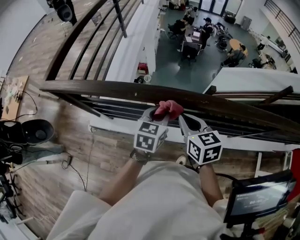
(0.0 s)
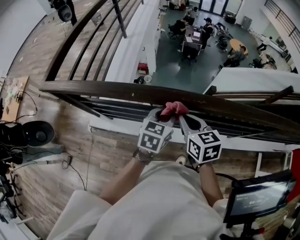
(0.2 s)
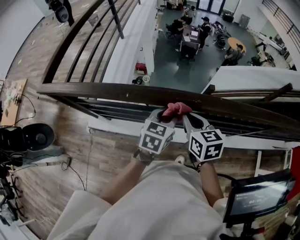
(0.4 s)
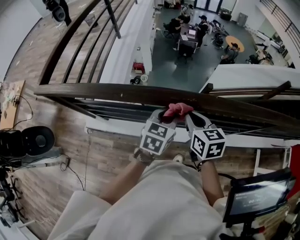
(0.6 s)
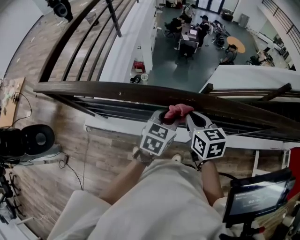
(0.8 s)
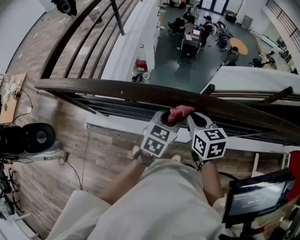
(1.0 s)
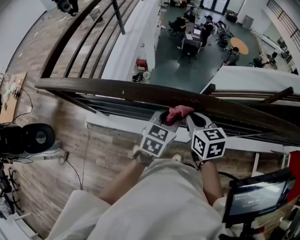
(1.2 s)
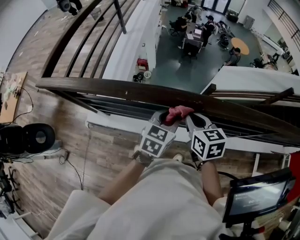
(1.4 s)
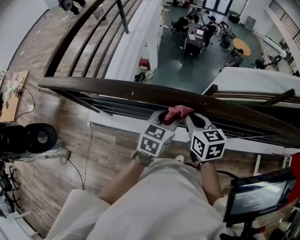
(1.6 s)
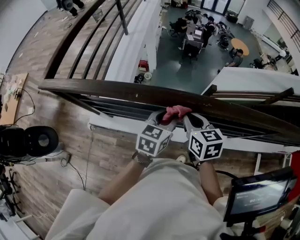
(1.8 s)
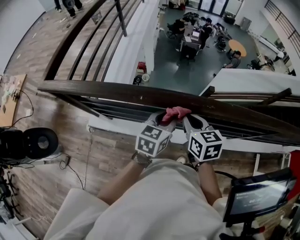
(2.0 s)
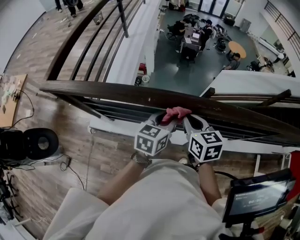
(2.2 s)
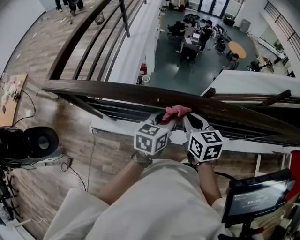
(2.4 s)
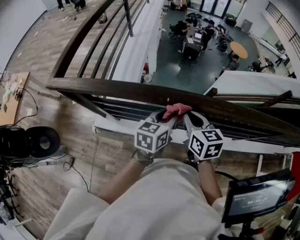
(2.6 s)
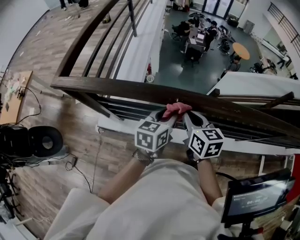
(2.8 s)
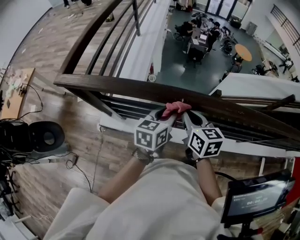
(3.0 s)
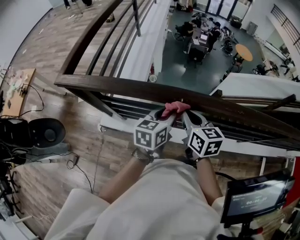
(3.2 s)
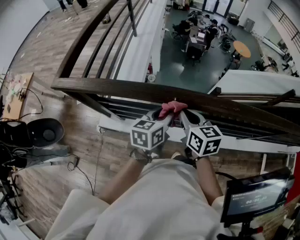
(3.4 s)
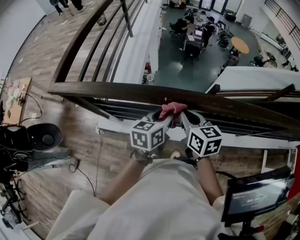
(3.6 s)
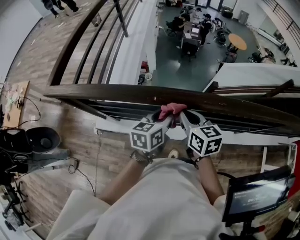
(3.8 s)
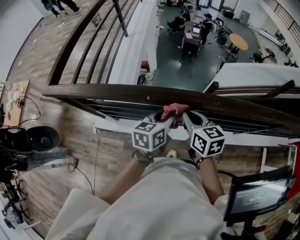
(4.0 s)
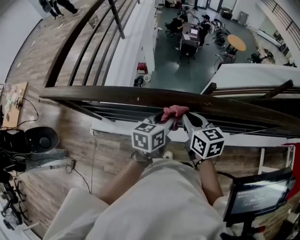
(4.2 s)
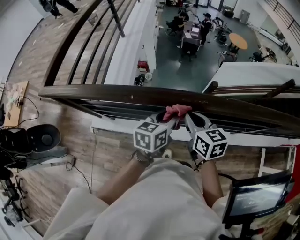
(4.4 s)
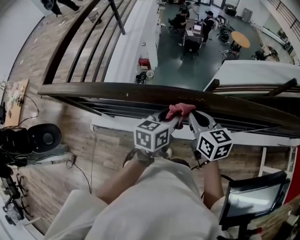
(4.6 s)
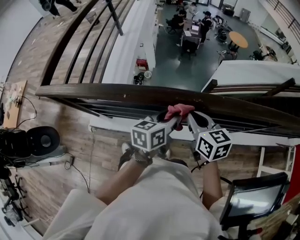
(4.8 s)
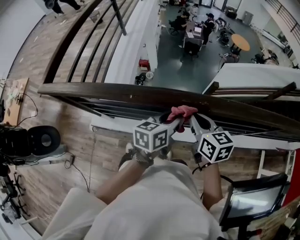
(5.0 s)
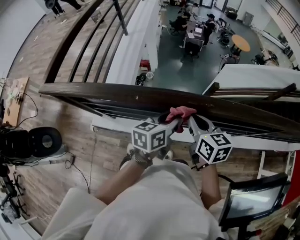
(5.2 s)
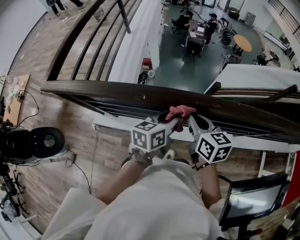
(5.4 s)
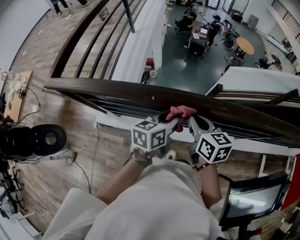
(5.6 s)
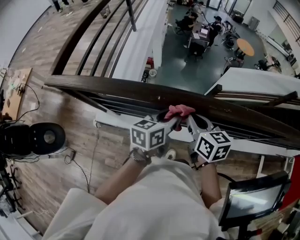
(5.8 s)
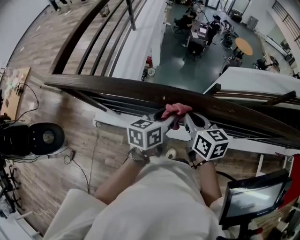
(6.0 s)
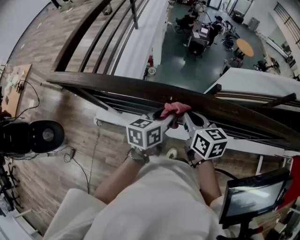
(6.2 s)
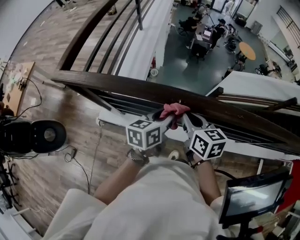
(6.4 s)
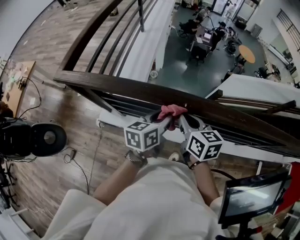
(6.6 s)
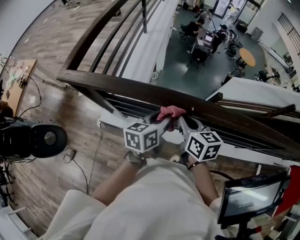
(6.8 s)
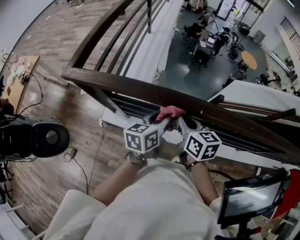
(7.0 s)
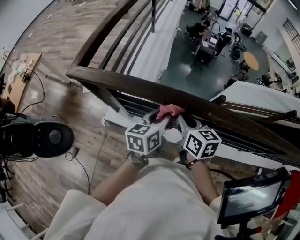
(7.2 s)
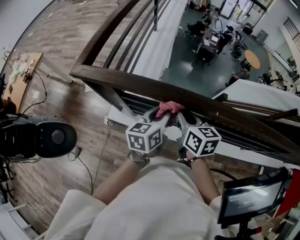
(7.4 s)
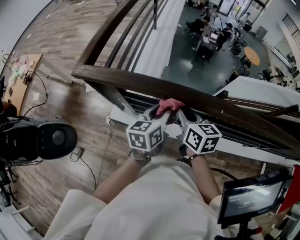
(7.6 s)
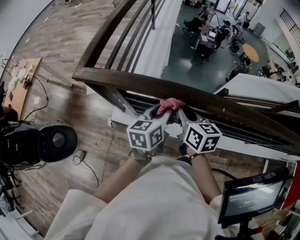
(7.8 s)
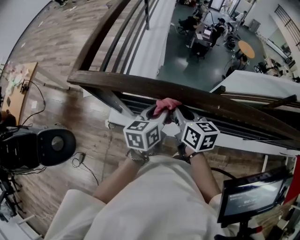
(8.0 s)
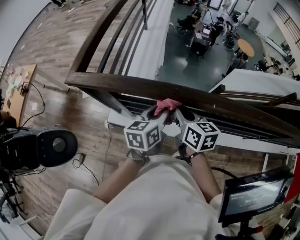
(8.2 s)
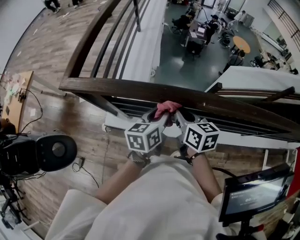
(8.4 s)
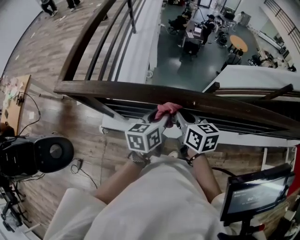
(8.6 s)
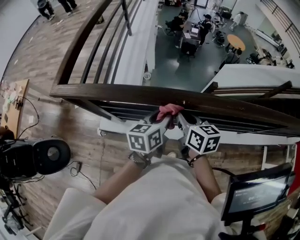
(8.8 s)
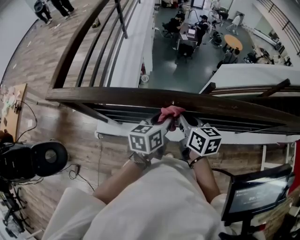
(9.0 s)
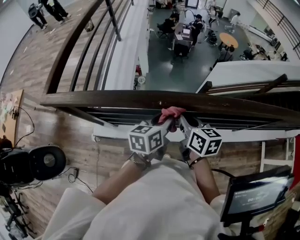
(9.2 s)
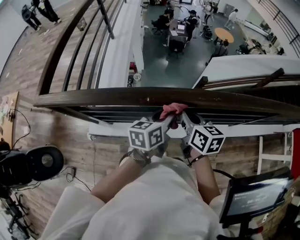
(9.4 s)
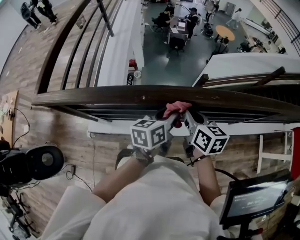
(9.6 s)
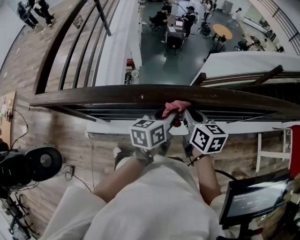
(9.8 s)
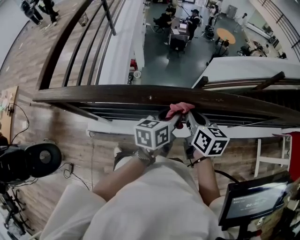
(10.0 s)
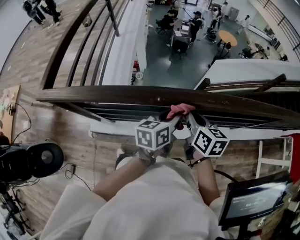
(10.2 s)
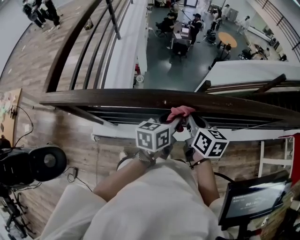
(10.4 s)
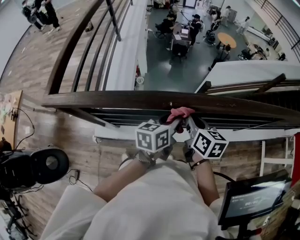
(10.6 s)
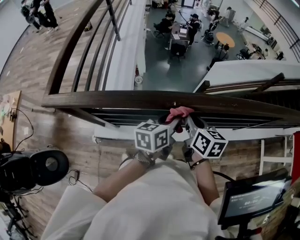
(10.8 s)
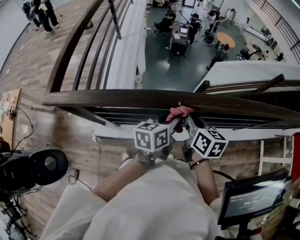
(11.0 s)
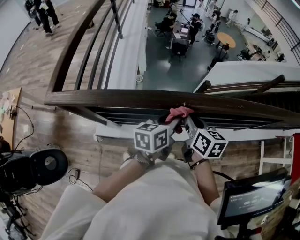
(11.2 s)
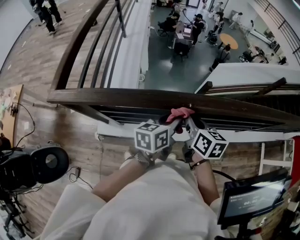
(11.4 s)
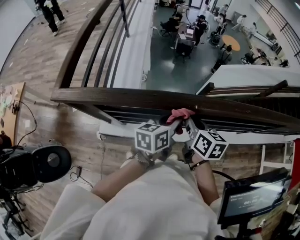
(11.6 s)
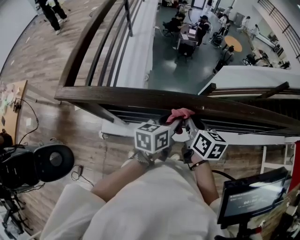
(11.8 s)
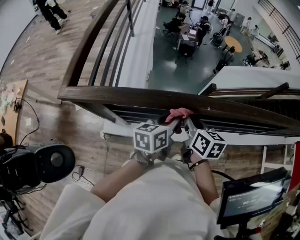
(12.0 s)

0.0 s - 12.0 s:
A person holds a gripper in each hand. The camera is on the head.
1.6 s - 3.0 s: Both grippers travel together to the left, about 15 cm.
3.0 s - 4.4 s: The grippers both shift to the right by about 15 cm.
4.4 s - 6.0 s: Both grippers travel together to the left, some 10 cm.
6.0 s - 7.6 s: Both grippers travel together to the left, about 20 cm.
7.6 s - 9.0 s: The grippers both shift to the right by approximately 15 cm.
9.0 s - 10.4 s: The two grippers go some 5 cm to the right.
10.4 s - 12.0 s: Both grippers travel together to the left, roughly 15 cm.

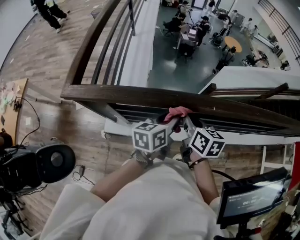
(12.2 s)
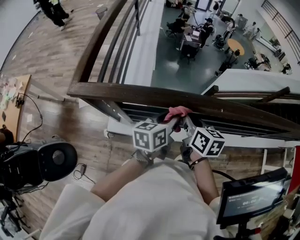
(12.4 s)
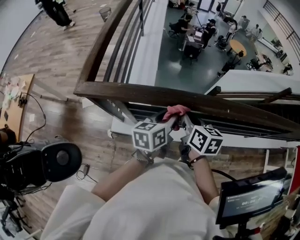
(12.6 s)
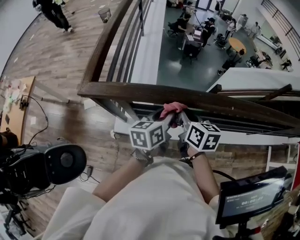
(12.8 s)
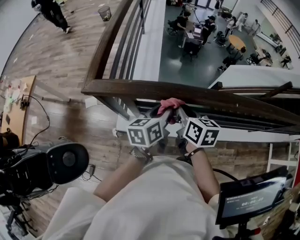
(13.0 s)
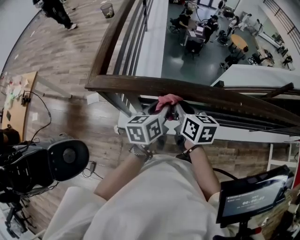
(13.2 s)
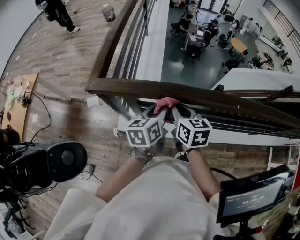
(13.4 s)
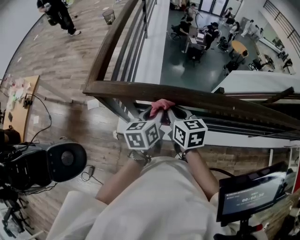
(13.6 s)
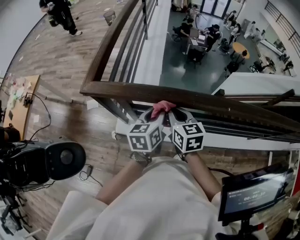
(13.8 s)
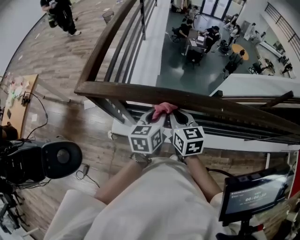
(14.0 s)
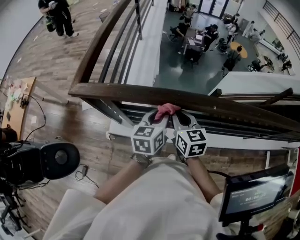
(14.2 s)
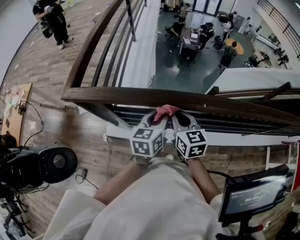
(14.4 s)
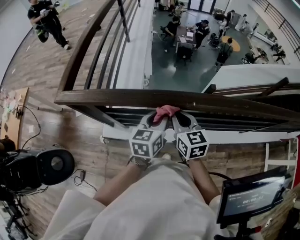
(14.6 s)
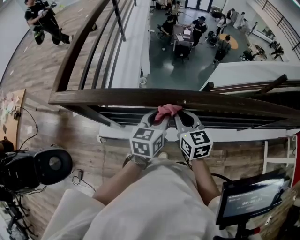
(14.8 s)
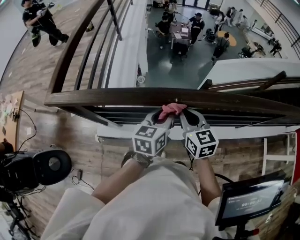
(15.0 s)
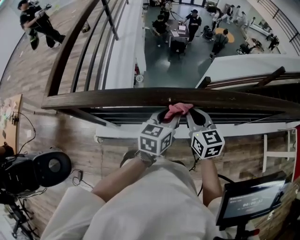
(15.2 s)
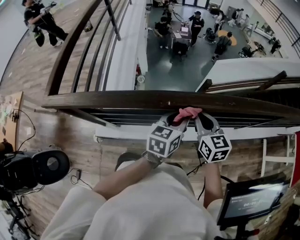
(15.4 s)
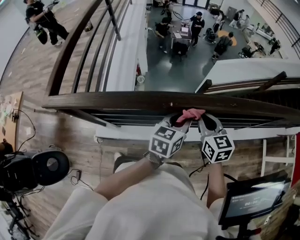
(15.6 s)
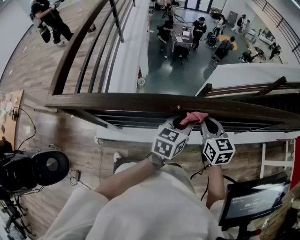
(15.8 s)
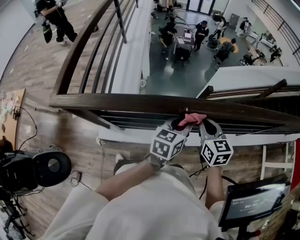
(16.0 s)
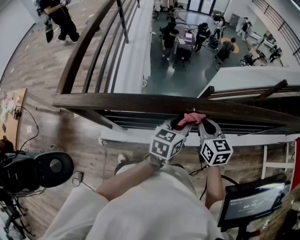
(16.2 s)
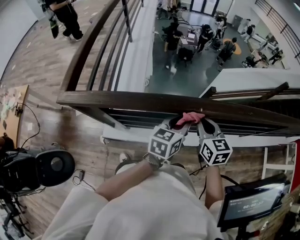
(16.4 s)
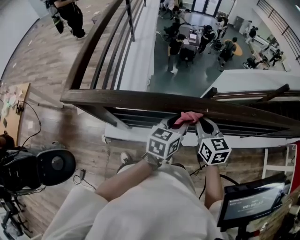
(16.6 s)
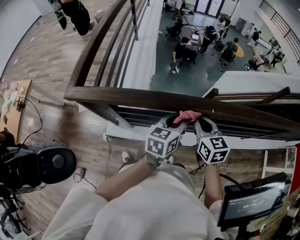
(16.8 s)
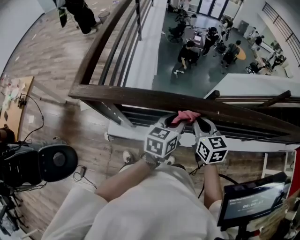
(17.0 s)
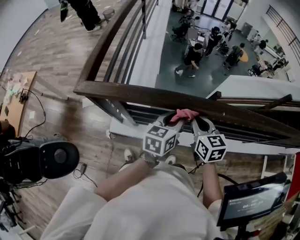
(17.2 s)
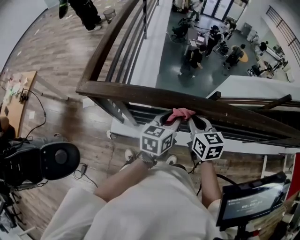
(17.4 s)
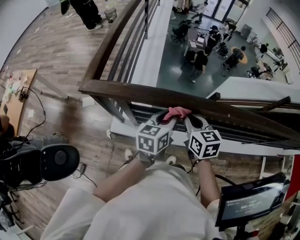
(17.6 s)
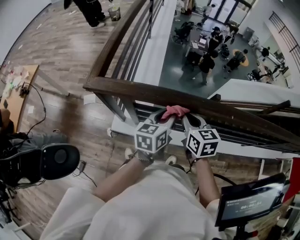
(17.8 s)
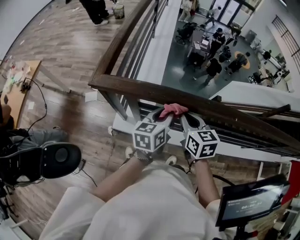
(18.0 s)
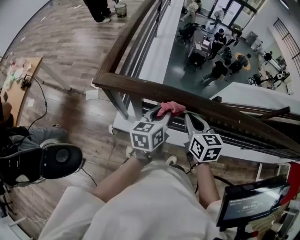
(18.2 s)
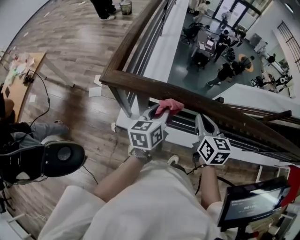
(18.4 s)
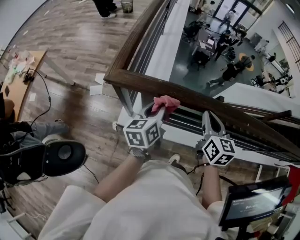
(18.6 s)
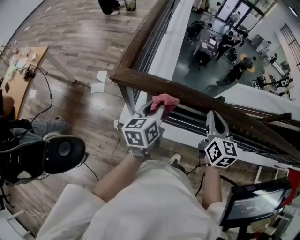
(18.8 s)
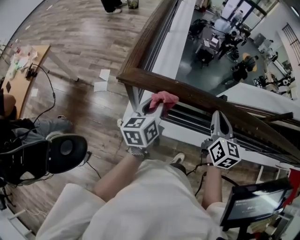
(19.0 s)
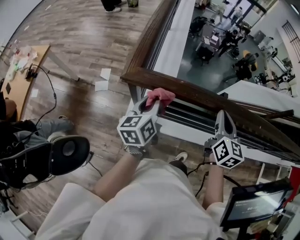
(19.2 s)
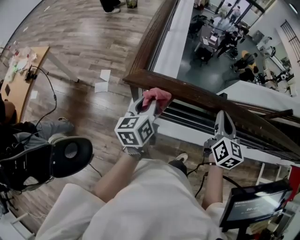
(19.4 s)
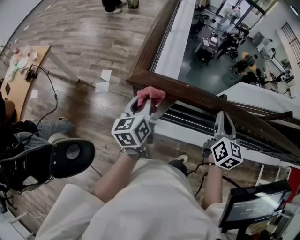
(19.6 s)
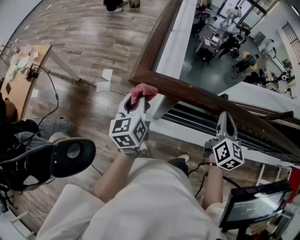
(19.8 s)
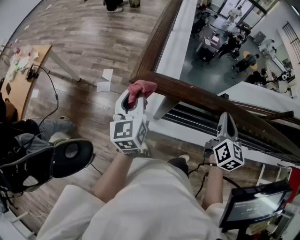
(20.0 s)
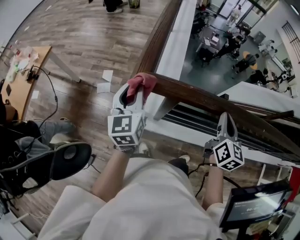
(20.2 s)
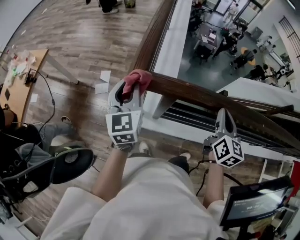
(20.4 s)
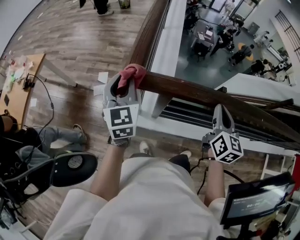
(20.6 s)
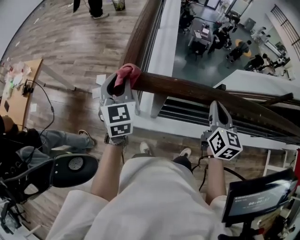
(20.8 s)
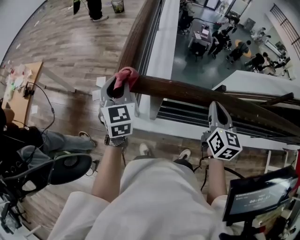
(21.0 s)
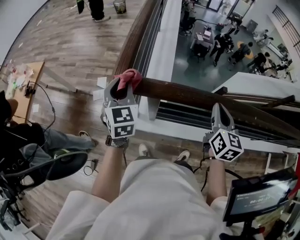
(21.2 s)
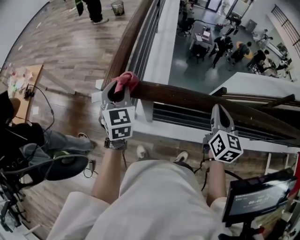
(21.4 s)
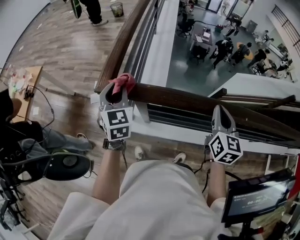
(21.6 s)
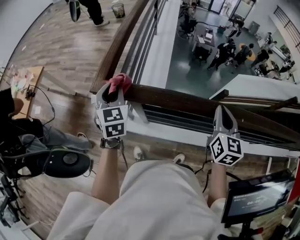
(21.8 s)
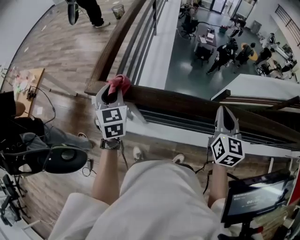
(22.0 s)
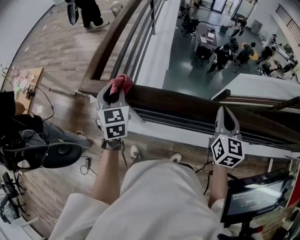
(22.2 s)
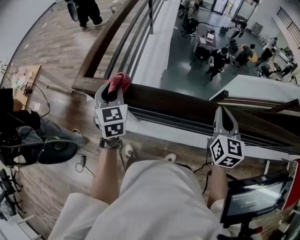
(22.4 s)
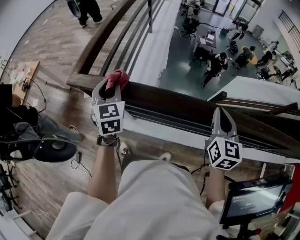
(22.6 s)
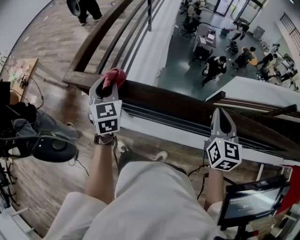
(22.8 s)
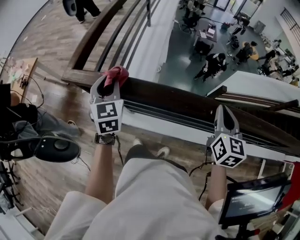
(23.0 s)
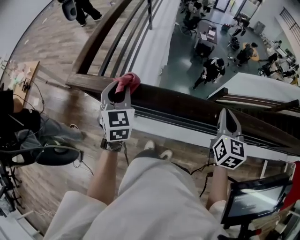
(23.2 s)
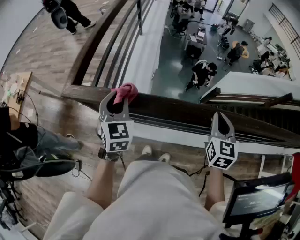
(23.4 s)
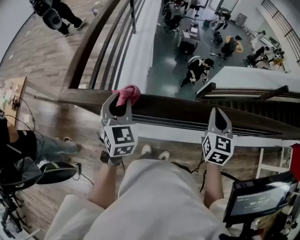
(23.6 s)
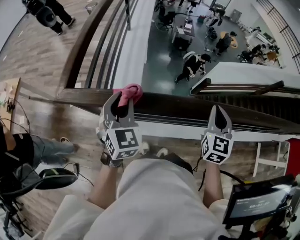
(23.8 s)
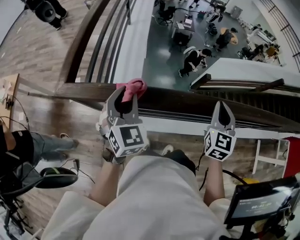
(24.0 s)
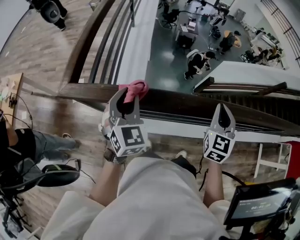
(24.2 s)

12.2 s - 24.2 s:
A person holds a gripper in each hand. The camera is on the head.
12.2 s - 13.8 s: Both grippers move to the left, about 15 cm. The right gripper swivels about 20 degrees; the left gripper changes its angle by about 20 degrees.
13.8 s - 15.2 s: Both grippers move to the right, about 25 cm. The left gripper changes its angle by roughly 20 degrees.
15.2 s - 16.6 s: Both grippers travel together to the left, approximately 10 cm.
16.6 s - 18.2 s: The two grippers go some 20 cm to the left. The left gripper changes its angle by about 20 degrees.
18.2 s - 19.8 s: The right gripper shifts by approximately 5 cm, and changes its angle by roughly 30 degrees. The left gripper is displaced to the left by roughly 25 cm, and swivels roughly 30 degrees.
19.8 s - 21.2 s: The left gripper travels upward by approximately 5 cm, and twists about 40 degrees clockwise, seen from behind.
21.2 s - 22.6 s: Both grippers move to the right, some 15 cm.
22.6 s - 24.2 s: The right gripper rotates some 20 degrees. The left gripper shifts some 10 cm to the right.
